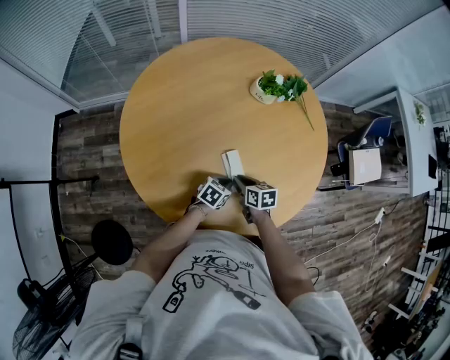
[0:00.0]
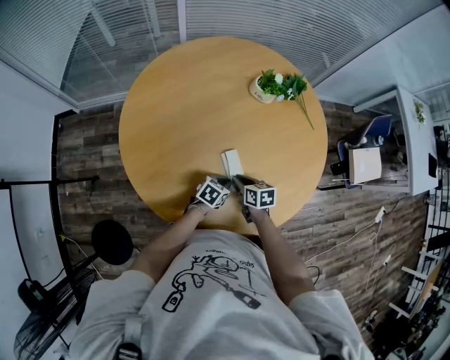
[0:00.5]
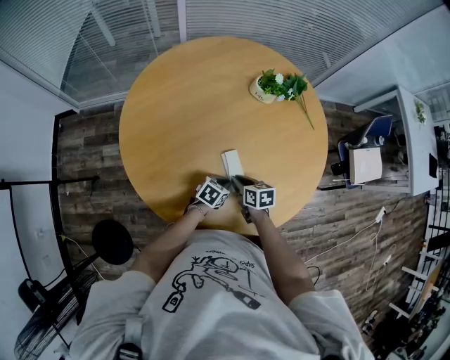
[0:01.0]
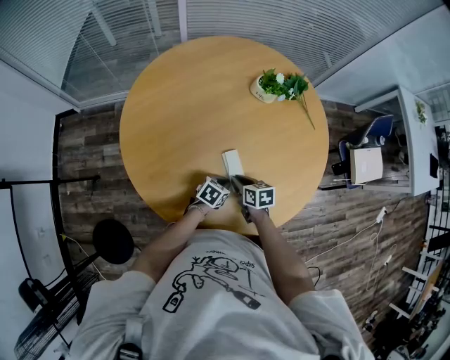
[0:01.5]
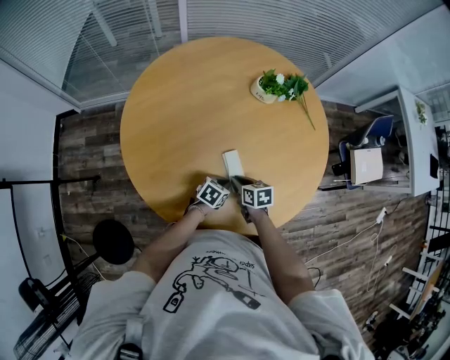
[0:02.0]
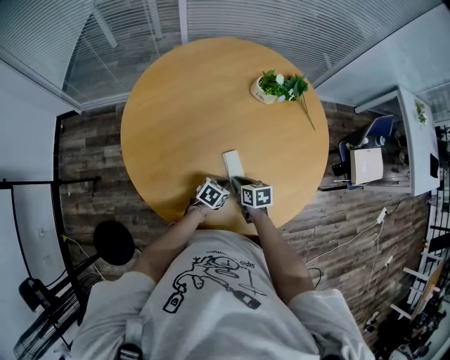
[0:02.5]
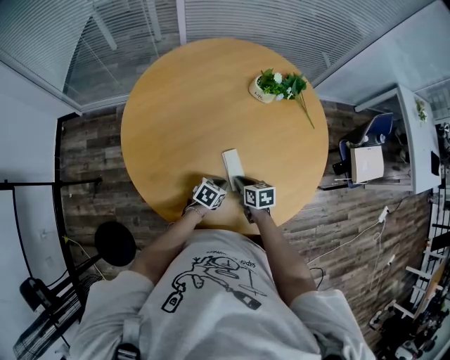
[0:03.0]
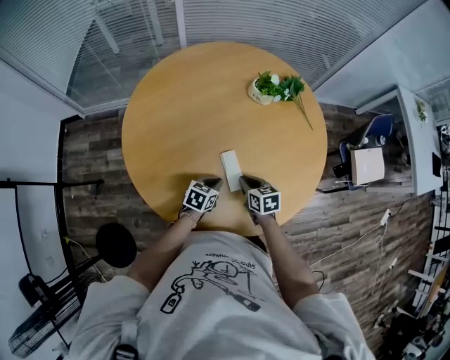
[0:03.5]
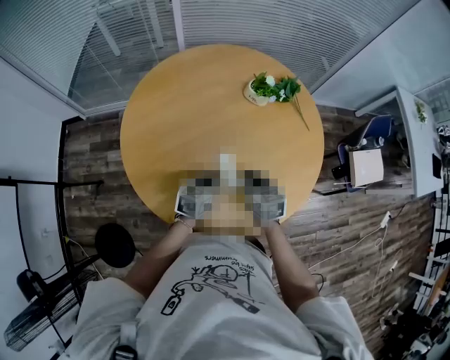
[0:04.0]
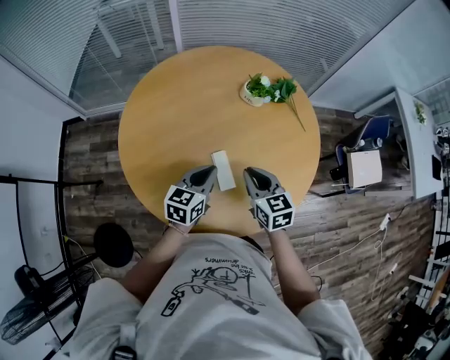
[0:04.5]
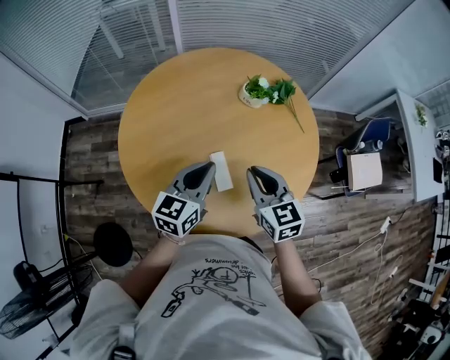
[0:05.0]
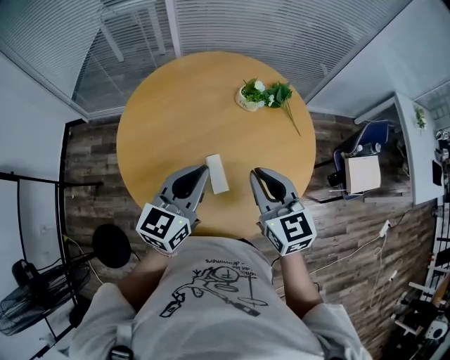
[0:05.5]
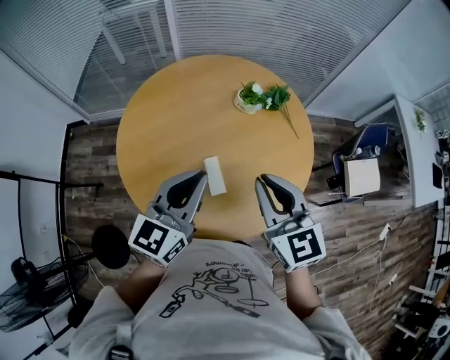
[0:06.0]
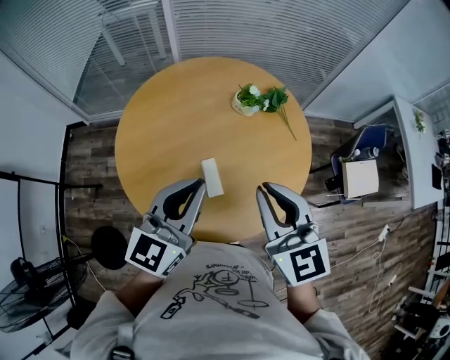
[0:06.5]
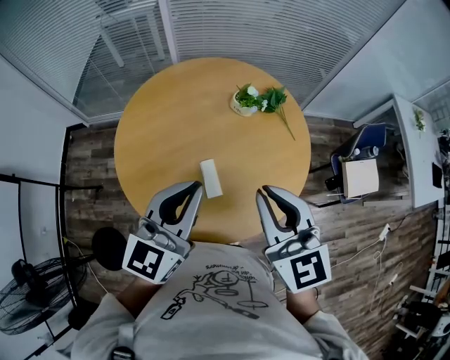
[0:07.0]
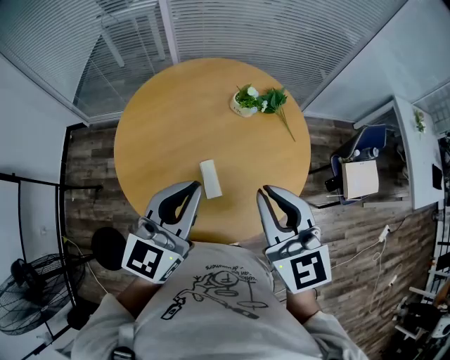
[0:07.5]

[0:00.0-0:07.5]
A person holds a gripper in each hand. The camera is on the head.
0:00.0 to 0:02.0: There are only small adjustments of the grippers.
0:02.0 to 0:04.0: Both grippers move upward, some 15 cm. The right gripper changes its angle by some 20 degrees. The left gripper turns by approximately 20 degrees.
0:04.0 to 0:05.5: Both grippers move upward, approximately 25 cm. The left gripper changes its angle by about 30 degrees. The right gripper swivels about 20 degrees.
0:05.5 to 0:07.5: The grippers both shift upward by approximately 10 cm.

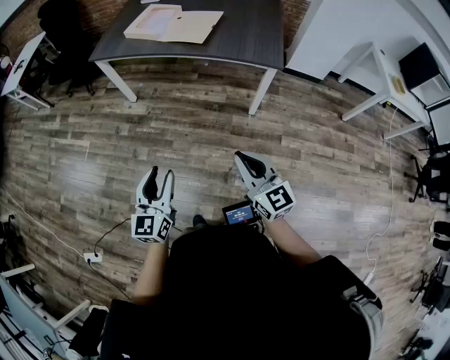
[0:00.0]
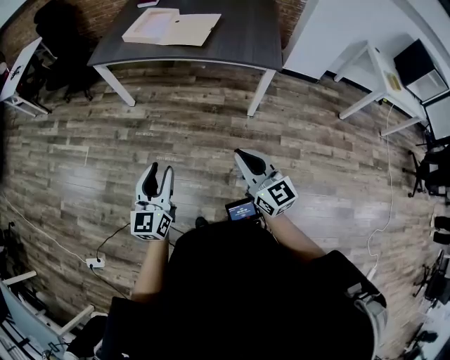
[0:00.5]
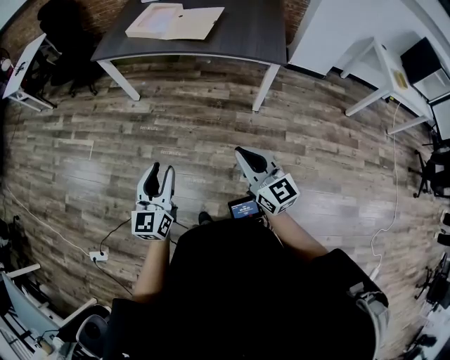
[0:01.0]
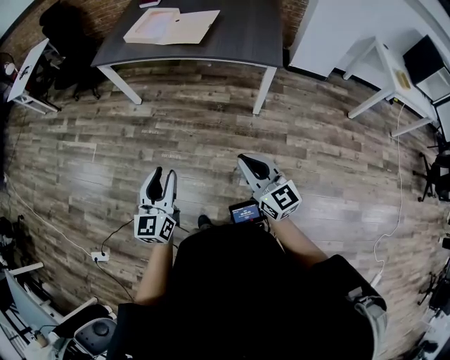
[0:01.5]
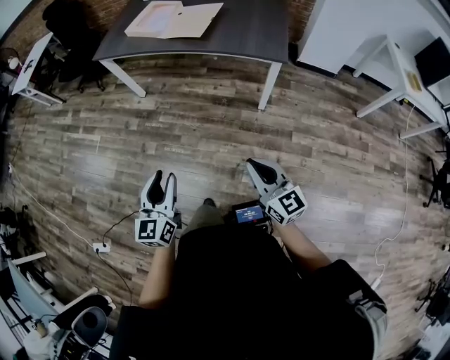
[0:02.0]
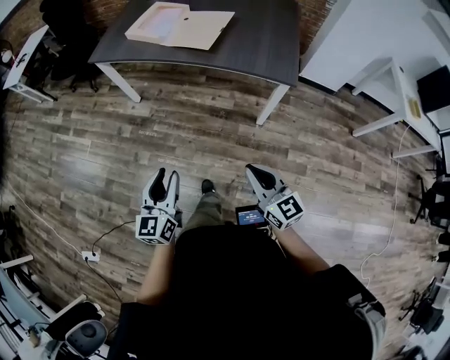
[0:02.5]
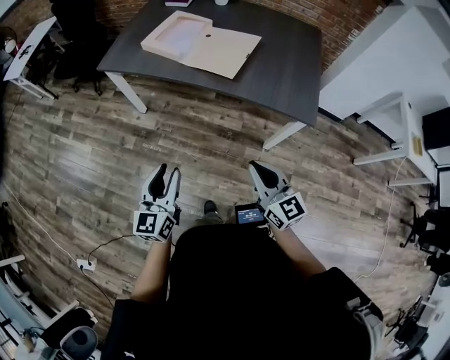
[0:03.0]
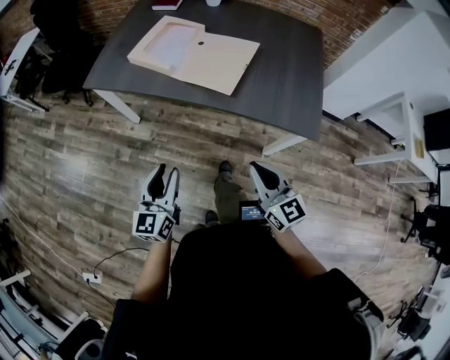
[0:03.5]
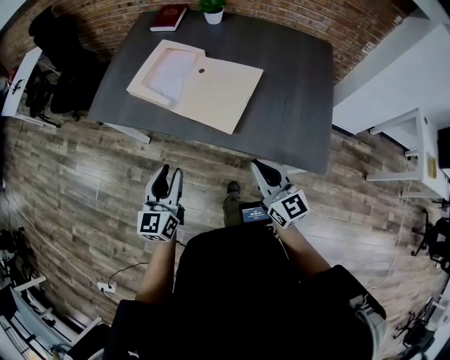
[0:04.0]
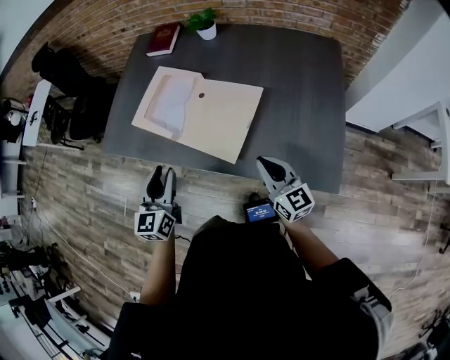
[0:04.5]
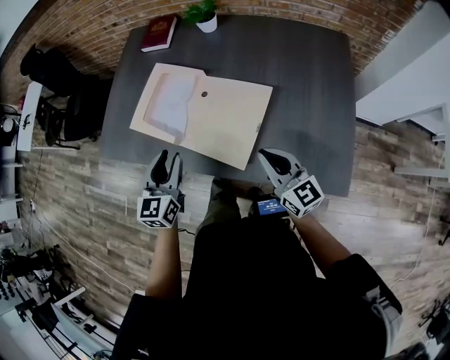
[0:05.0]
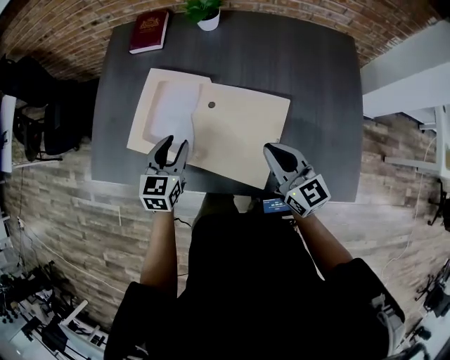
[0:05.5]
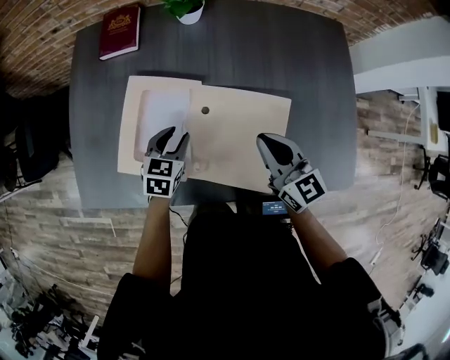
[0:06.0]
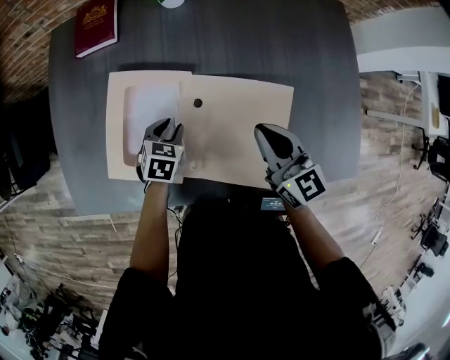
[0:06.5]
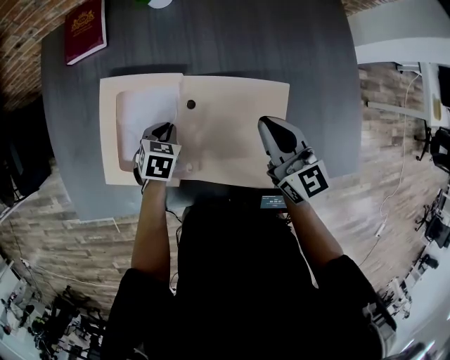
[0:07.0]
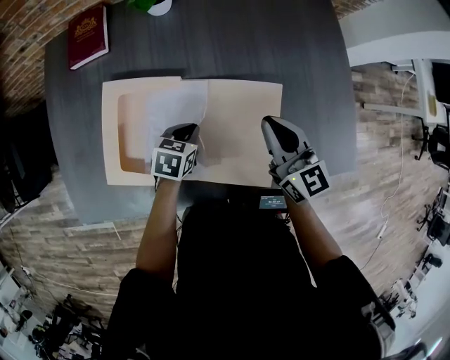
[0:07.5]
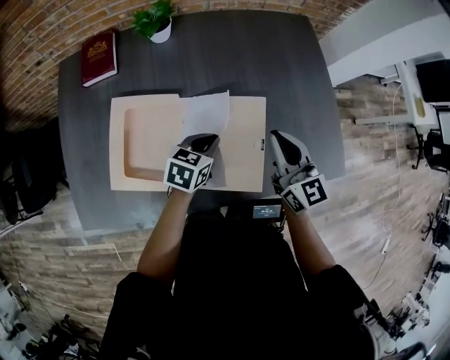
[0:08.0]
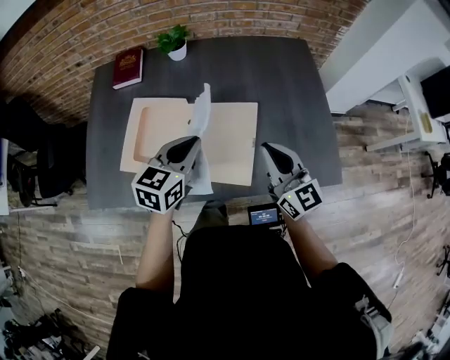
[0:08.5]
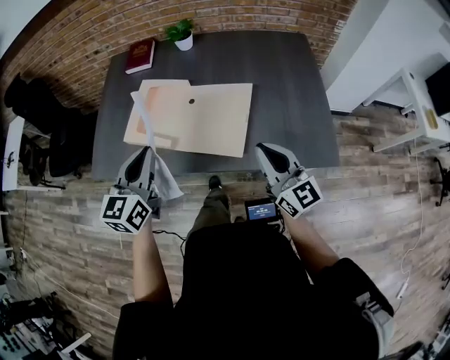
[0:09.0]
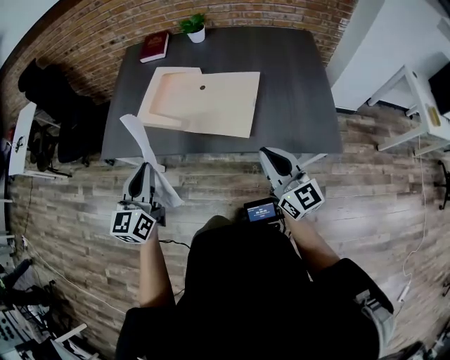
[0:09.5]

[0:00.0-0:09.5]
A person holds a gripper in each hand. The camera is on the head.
0:00.0 to 0:02.0: The left gripper heads to the right, covering roughly 5 cm; the right gripper heads to the right, covering approximately 10 cm.
0:02.0 to 0:04.0: The pair of grippers is taken forward, approximately 60 cm.
0:04.0 to 0:05.5: The grippers both shift forward by some 35 cm. The left gripper rotates about 30 degrees.
0:05.5 to 0:07.5: The left gripper is displaced downward by roughly 15 cm, swivels approximately 40 degrees, and closes, while the right gripper changes place by roughly 10 cm, and rotates some 20 degrees.
0:07.5 to 0:09.5: The right gripper changes place by some 40 cm, and turns by about 20 degrees; the left gripper moves roughly 50 cm, and points its fingers approximately 50 degrees further upward.

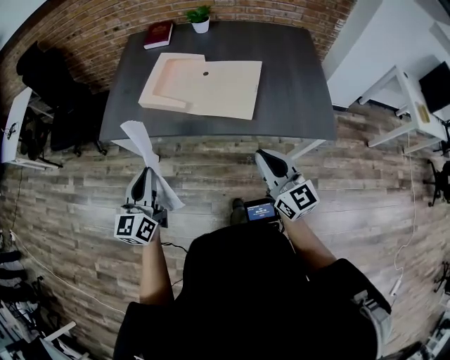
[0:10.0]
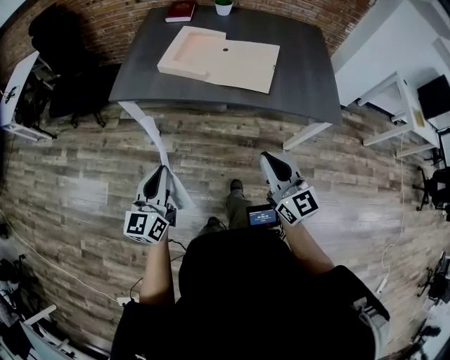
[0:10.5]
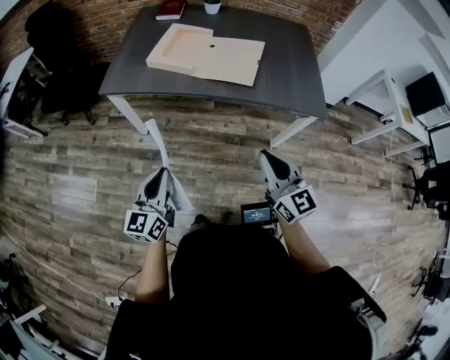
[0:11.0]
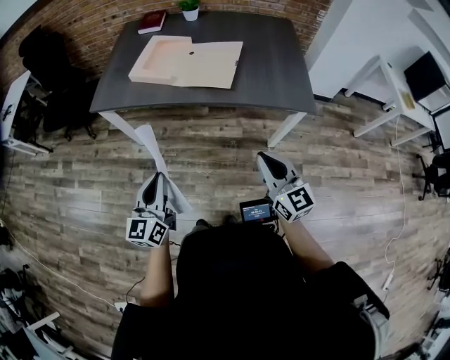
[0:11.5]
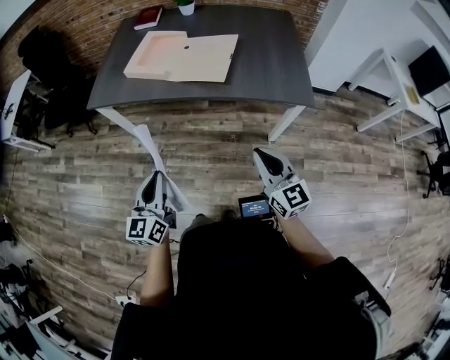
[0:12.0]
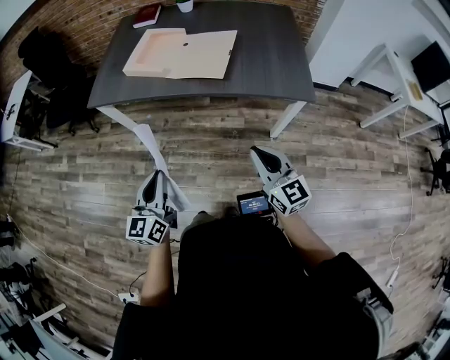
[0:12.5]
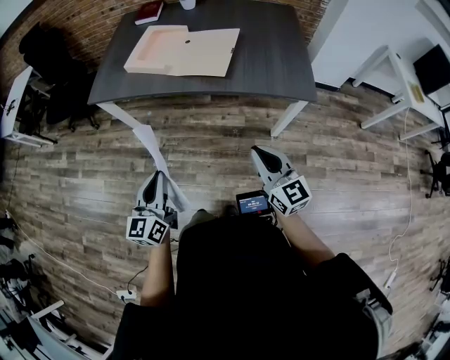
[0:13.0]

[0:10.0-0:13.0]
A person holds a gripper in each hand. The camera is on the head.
0:10.0 to 0:11.5: The grippers both shift backward by roughly 20 cm.
0:11.5 to 0:13.0: The grippers move only a little.

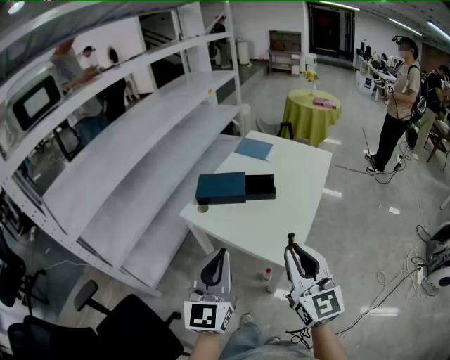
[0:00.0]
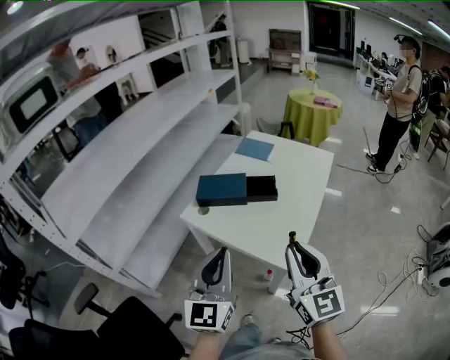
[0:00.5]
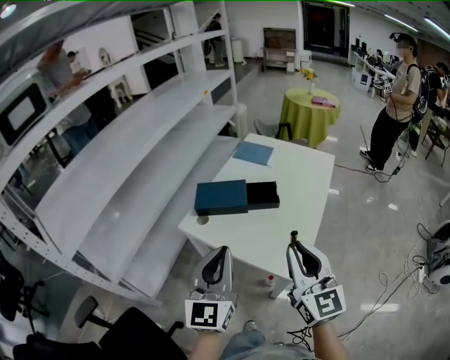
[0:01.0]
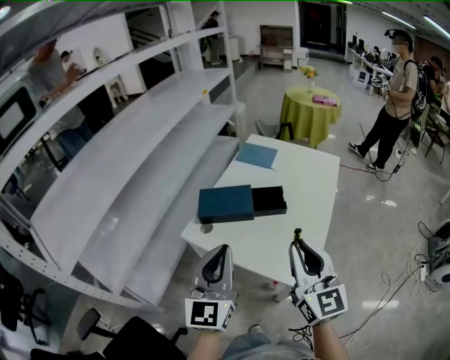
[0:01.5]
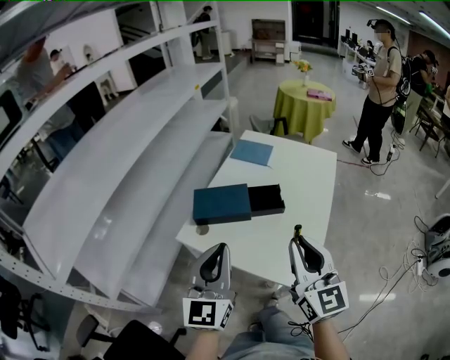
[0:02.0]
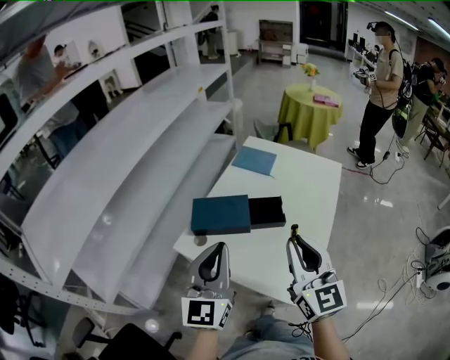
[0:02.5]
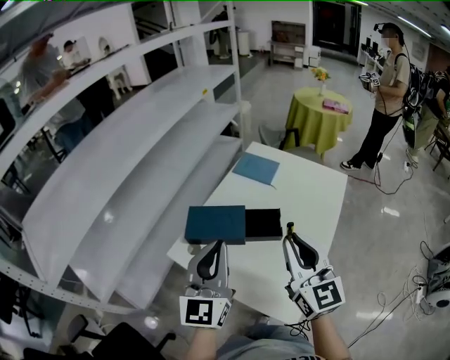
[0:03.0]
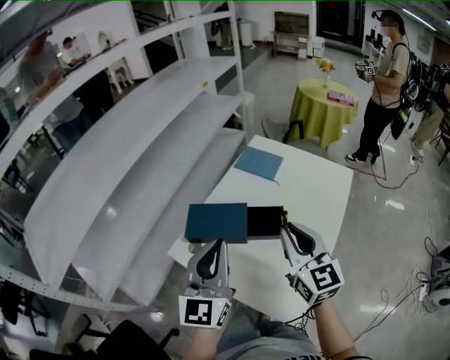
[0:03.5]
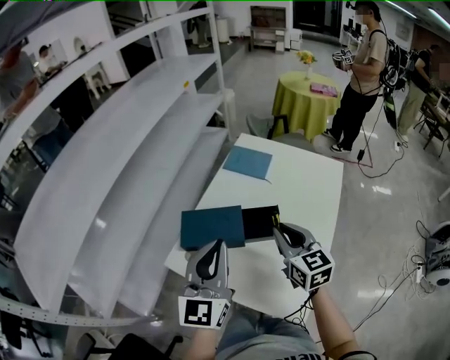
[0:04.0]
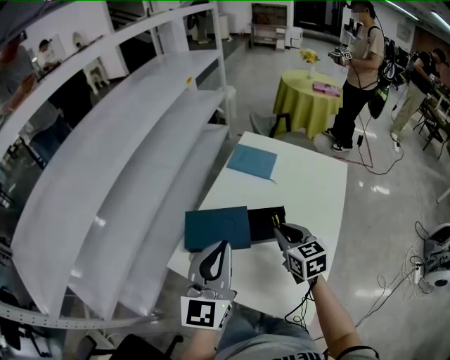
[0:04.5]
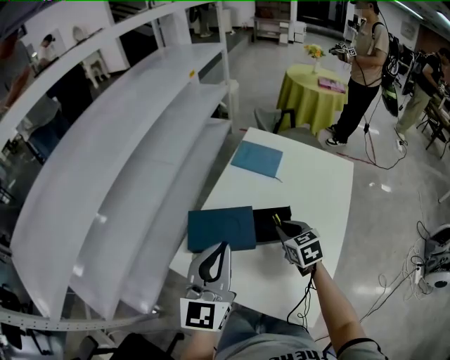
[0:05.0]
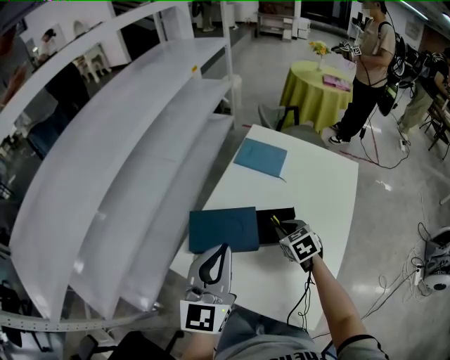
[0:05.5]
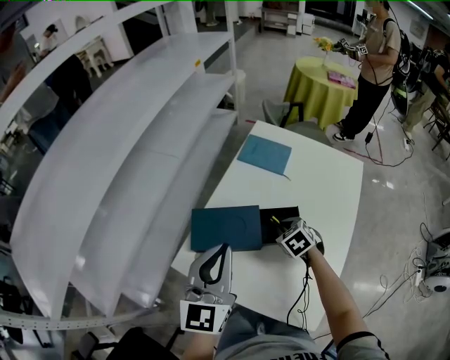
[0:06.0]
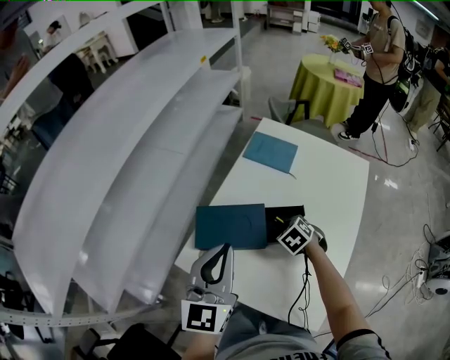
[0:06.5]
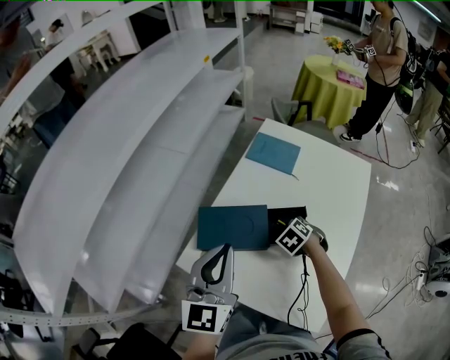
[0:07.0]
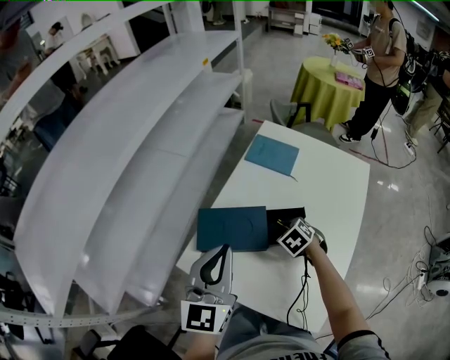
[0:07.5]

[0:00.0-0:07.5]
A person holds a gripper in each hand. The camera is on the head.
0:00.0 to 0:02.0: Both grippers move forward, some 15 cm.
0:02.0 to 0:04.0: The left gripper shifts approximately 15 cm forward, while the right gripper shifts some 25 cm forward and downward, and changes its angle by roughly 20 degrees.
0:04.0 to 0:05.5: The left gripper ends up roughly 5 cm from where it was, while the right gripper heads downward and forward, covering about 20 cm, and tips its fingers downward by about 30 degrees.
0:05.5 to 0:07.5: The right gripper ends up roughly 5 cm from where it was, and swivels some 20 degrees.
